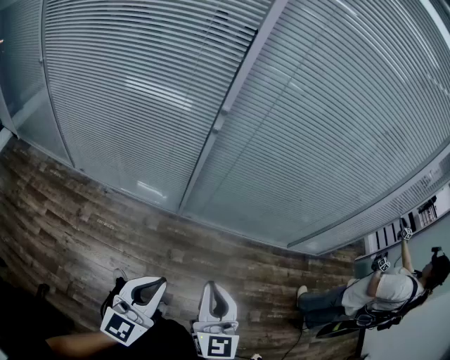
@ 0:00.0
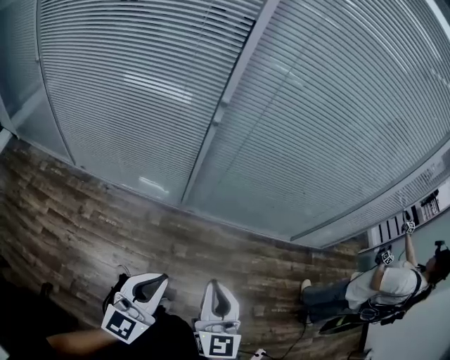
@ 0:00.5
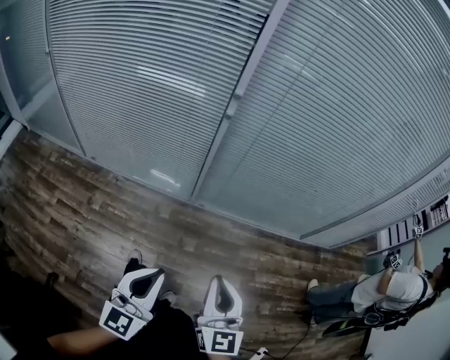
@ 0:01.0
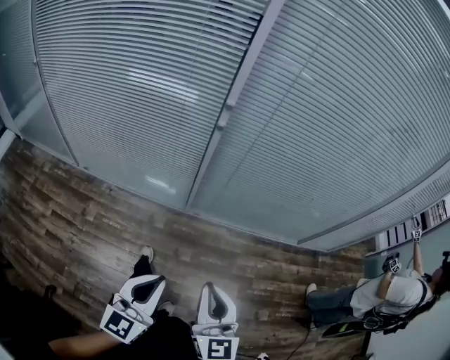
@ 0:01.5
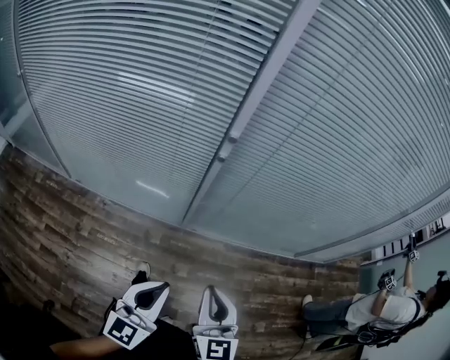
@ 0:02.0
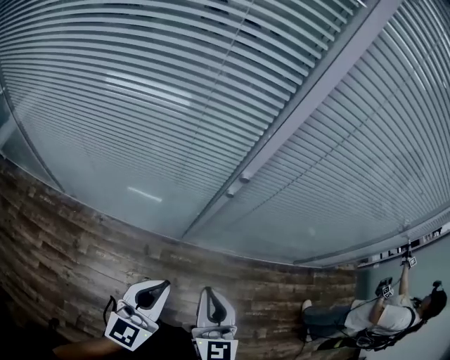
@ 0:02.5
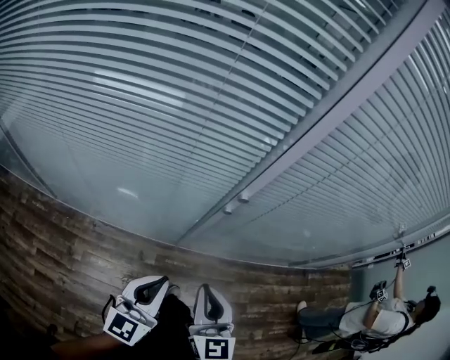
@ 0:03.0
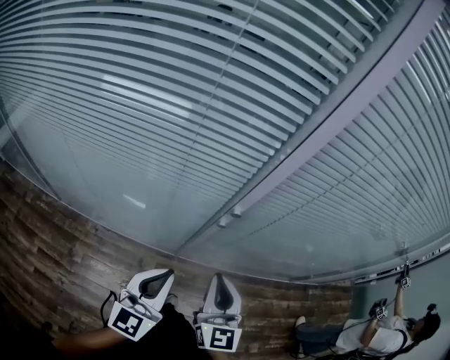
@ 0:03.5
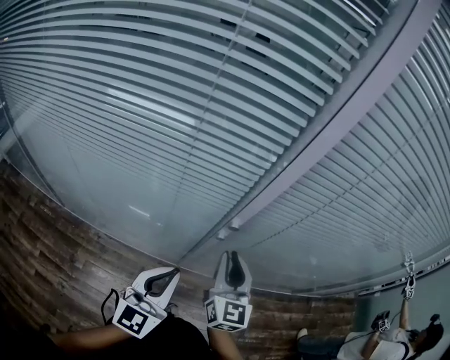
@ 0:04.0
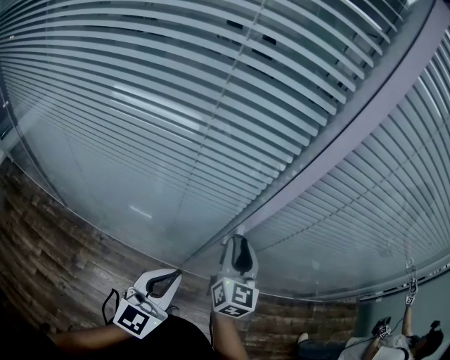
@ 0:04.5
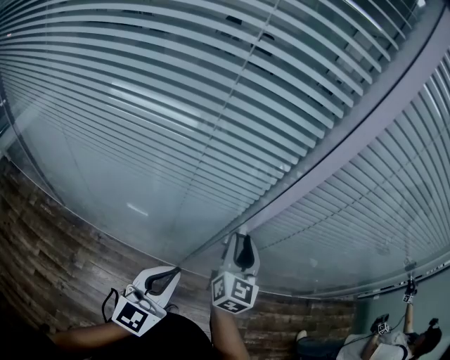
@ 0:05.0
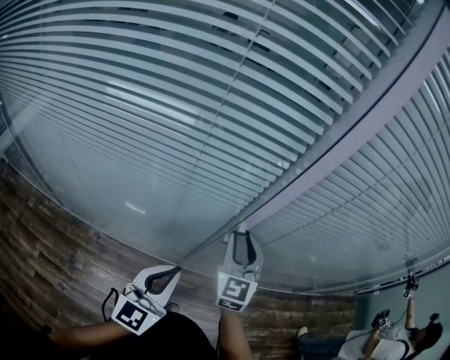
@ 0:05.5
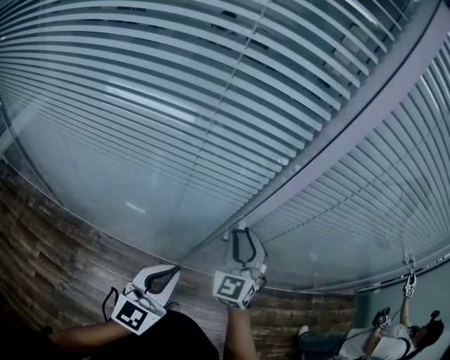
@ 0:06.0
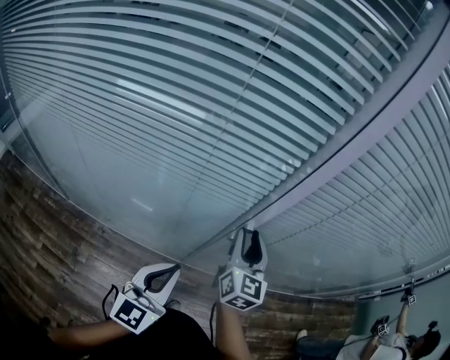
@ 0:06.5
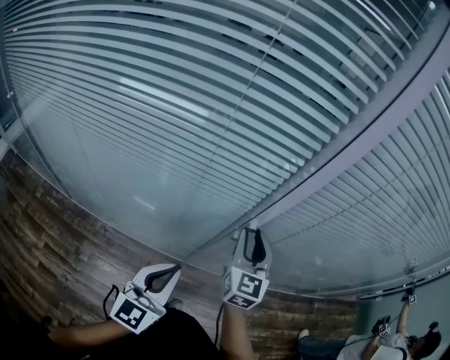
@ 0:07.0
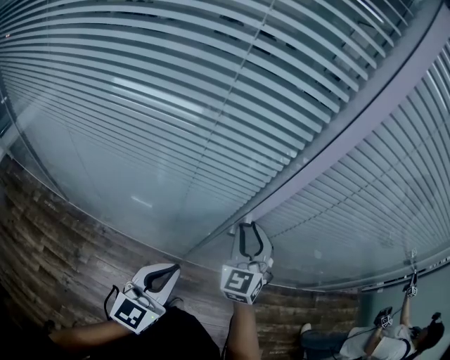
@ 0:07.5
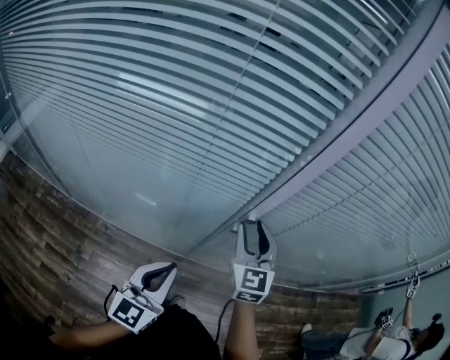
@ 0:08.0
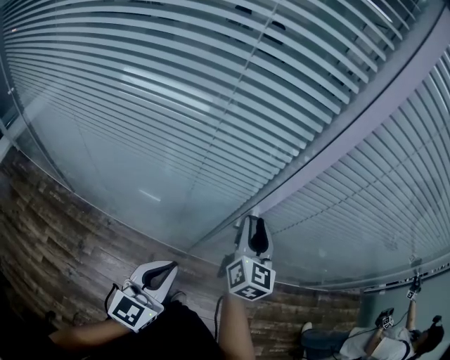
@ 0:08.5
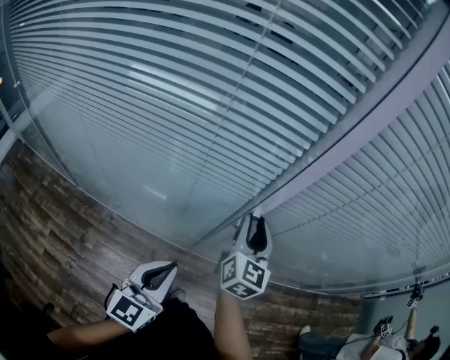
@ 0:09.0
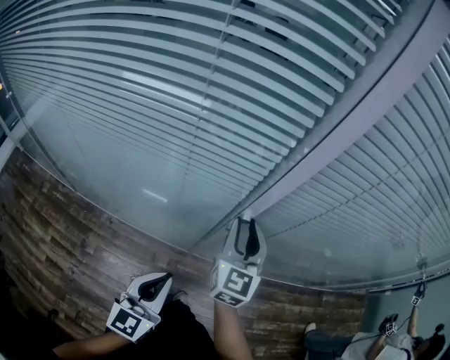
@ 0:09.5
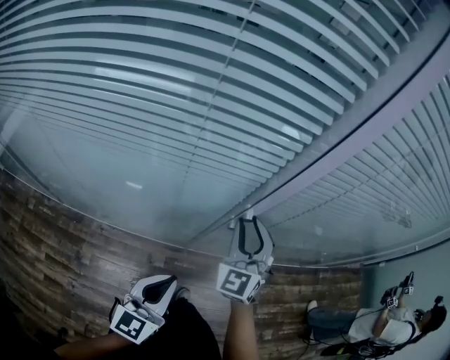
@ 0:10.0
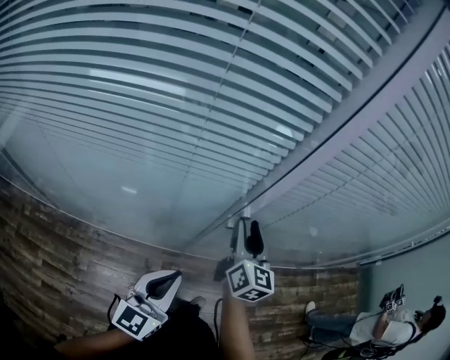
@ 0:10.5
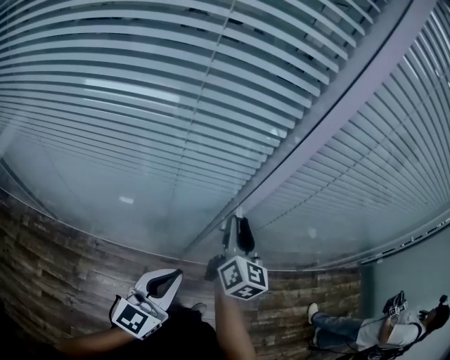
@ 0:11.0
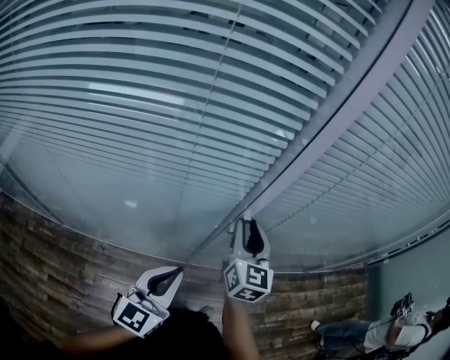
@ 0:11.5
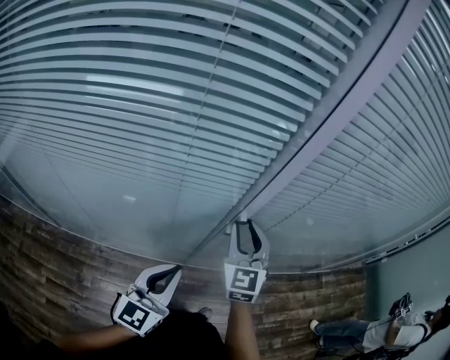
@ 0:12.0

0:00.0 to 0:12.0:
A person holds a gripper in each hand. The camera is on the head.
0:00.0 to 0:02.0: Both grippers travel together forward, about 15 cm.
0:02.0 to 0:04.0: Both grippers travel together forward, about 30 cm.
0:04.0 to 0:06.0: The right gripper heads forward, covering some 5 cm, and changes its angle by approximately 40 degrees.
0:06.0 to 0:08.0: The right gripper swivels some 20 degrees.
0:08.0 to 0:10.0: The right gripper turns by roughly 20 degrees.

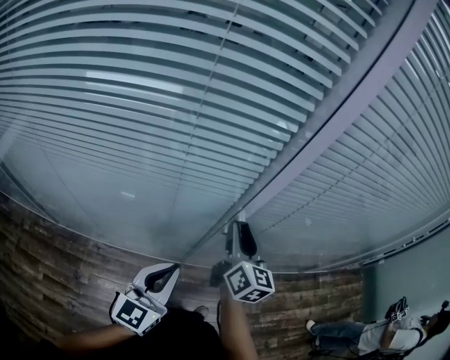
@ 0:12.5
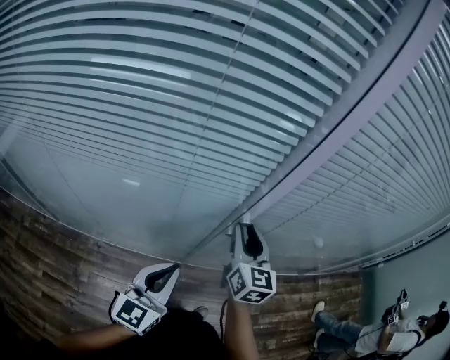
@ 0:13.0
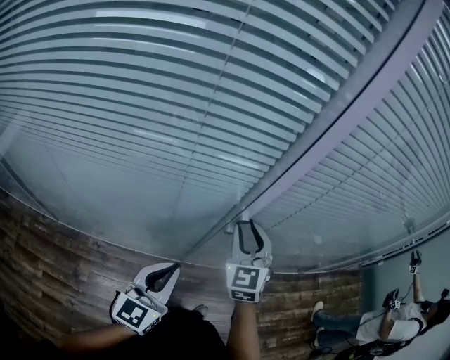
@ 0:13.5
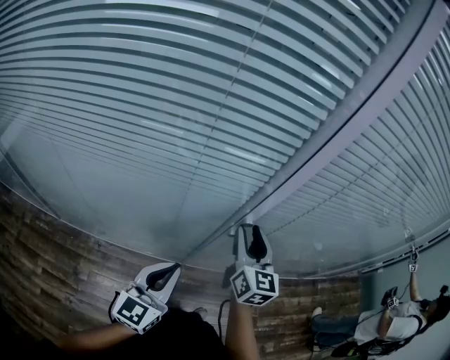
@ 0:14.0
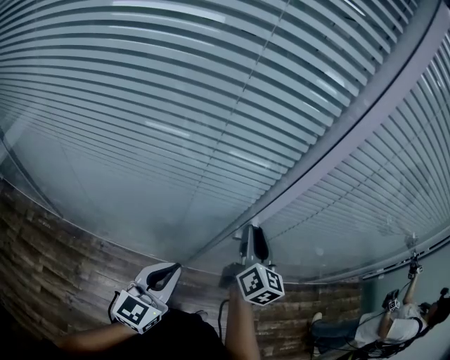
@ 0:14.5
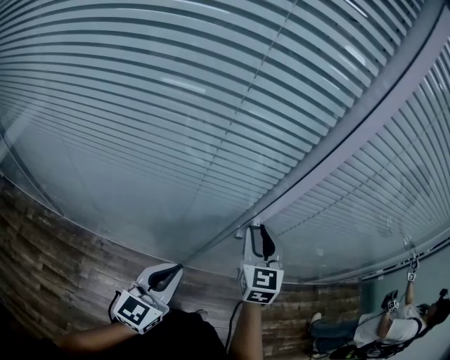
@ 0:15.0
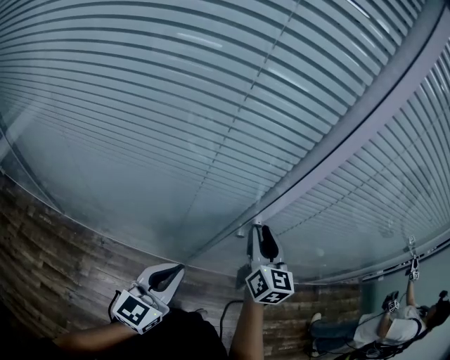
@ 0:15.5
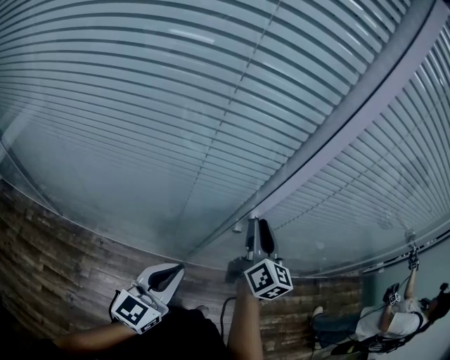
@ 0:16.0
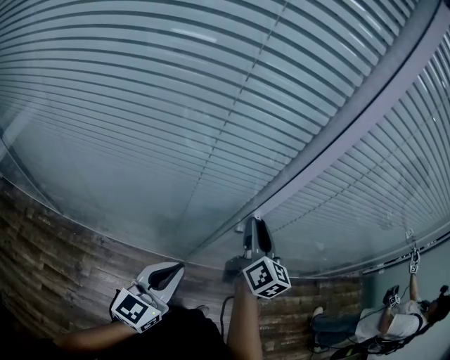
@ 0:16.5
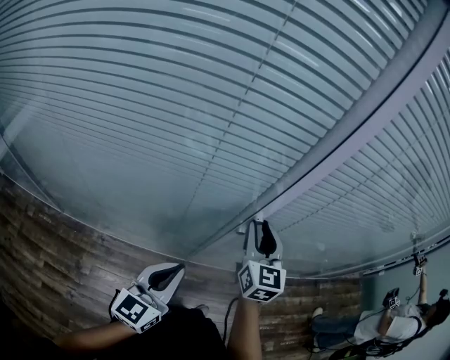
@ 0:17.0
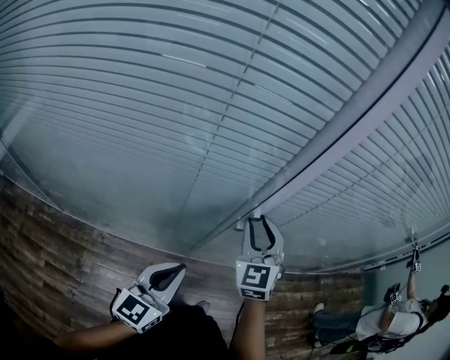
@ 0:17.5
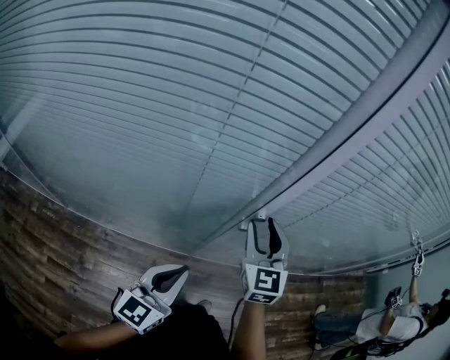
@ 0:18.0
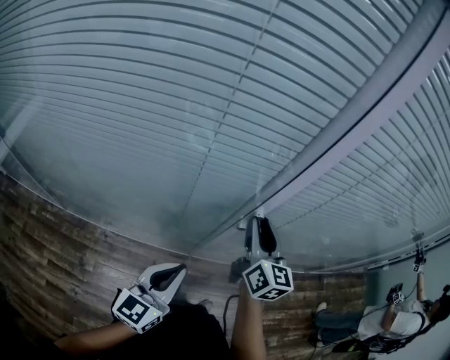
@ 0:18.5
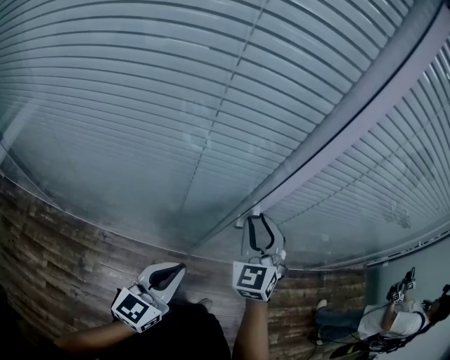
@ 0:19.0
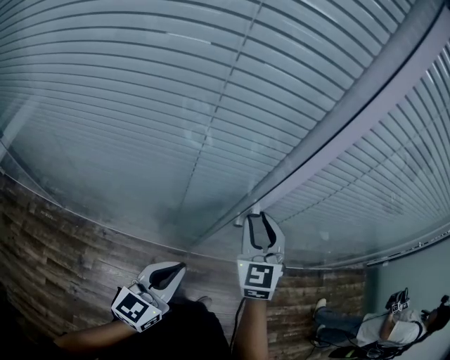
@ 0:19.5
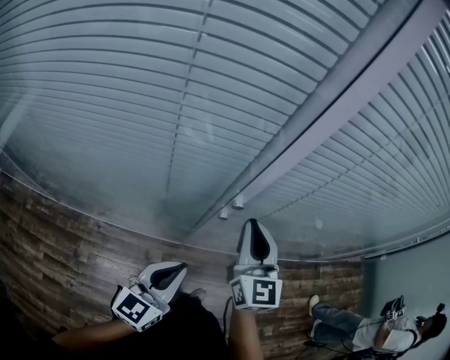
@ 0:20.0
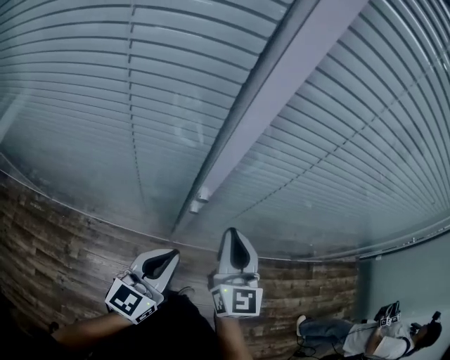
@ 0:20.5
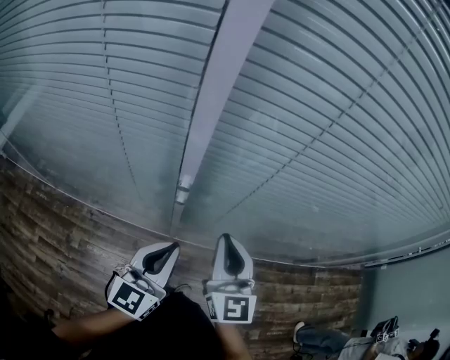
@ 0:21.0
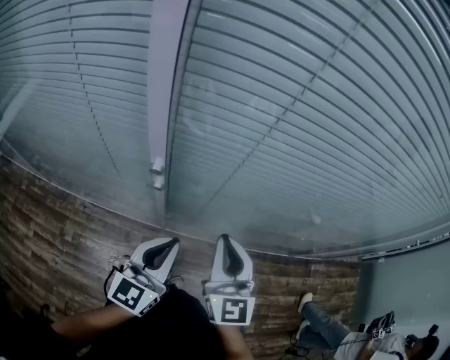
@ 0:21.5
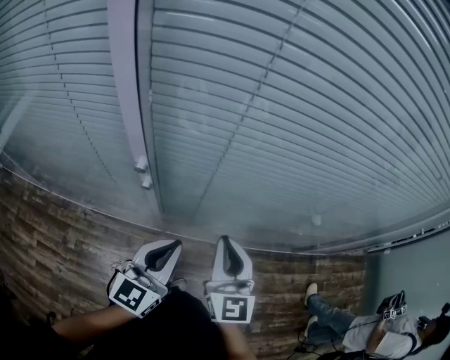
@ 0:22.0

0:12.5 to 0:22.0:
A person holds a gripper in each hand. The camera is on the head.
0:16.5 to 0:18.0: The right gripper rolls counterclockwise, seen from behind, by some 40 degrees.
0:18.0 to 0:20.0: The left gripper moves to the right, approximately 5 cm. Meanwhile the right gripper closes.
0:20.0 to 0:22.0: Both grippers move to the right, about 20 cm.

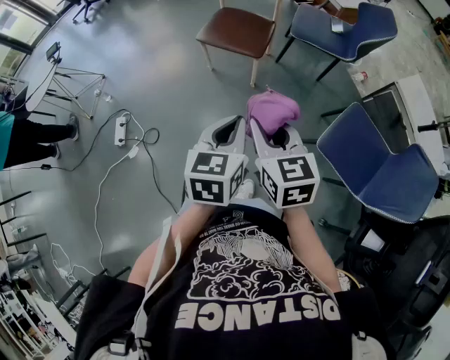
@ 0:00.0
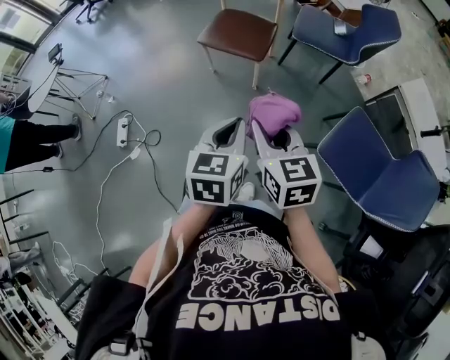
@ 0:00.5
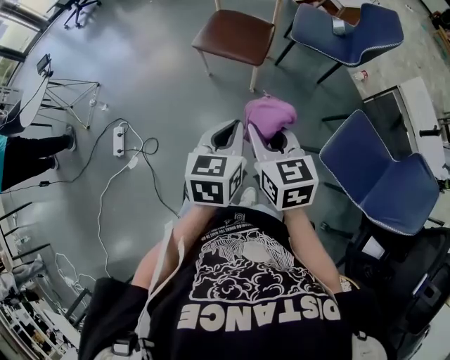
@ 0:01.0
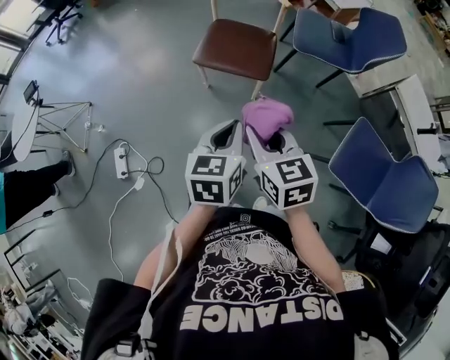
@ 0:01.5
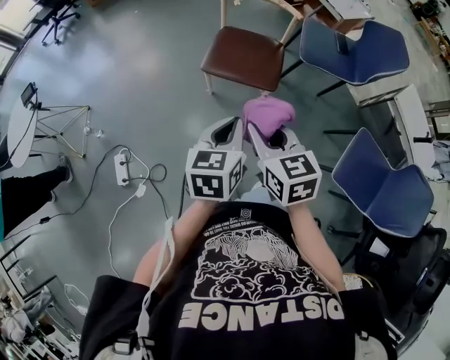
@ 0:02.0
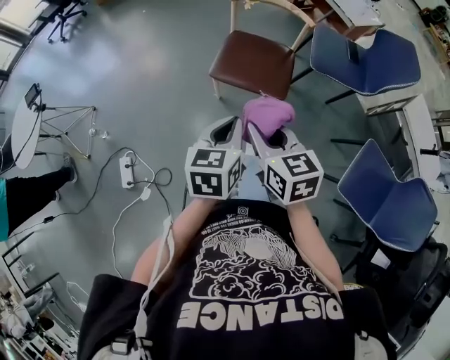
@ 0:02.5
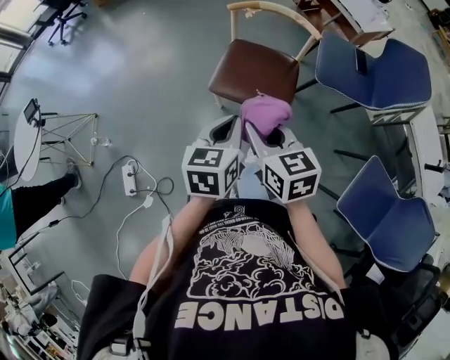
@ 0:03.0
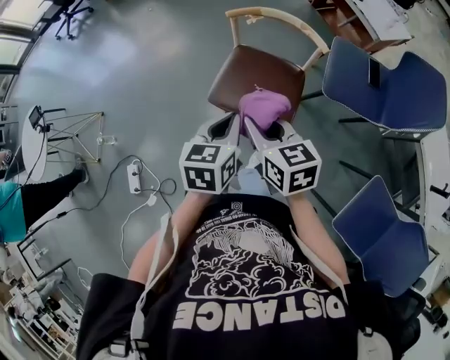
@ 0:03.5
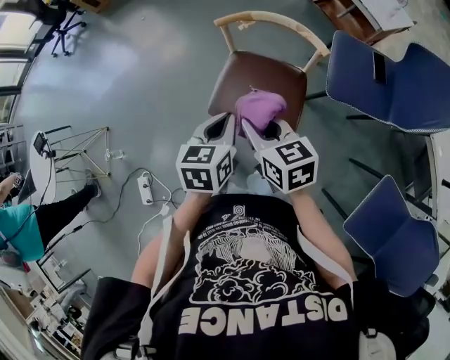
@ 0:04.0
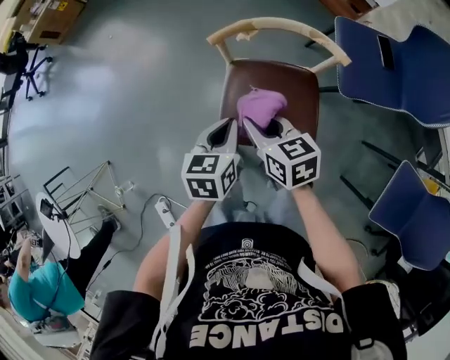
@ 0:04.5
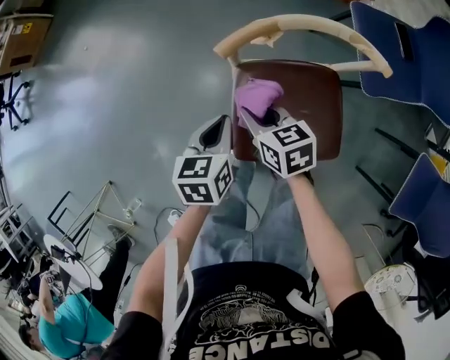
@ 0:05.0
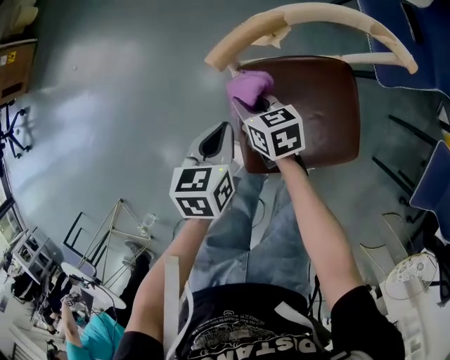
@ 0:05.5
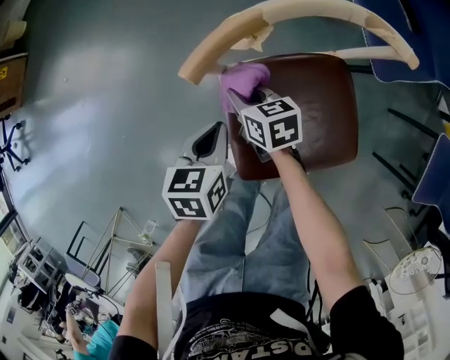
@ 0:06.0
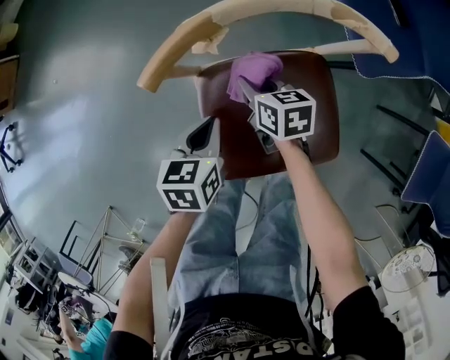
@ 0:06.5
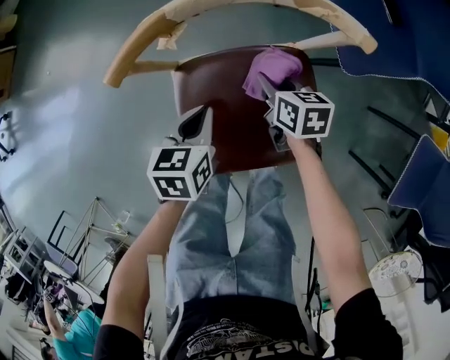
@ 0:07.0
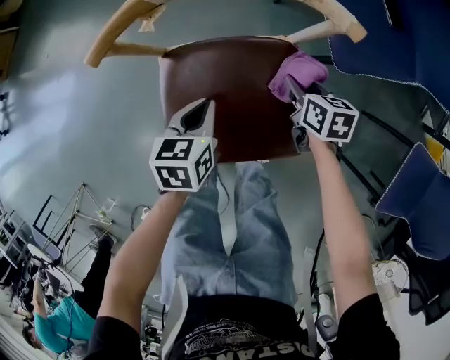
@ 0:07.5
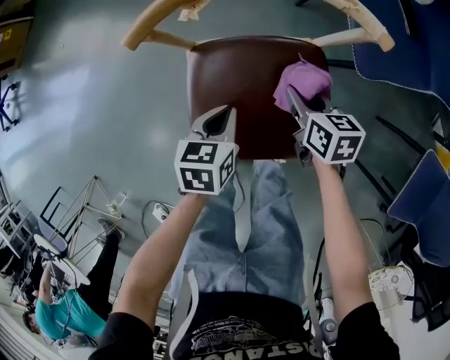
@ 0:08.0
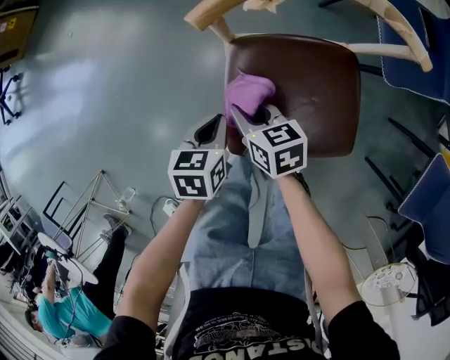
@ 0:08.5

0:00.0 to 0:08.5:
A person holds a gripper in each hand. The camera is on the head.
0:00.0 to 0:02.0: Both grippers move forward and to the left, roughly 30 cm.
0:02.0 to 0:04.0: The grippers both shift forward by approximately 30 cm.
0:04.0 to 0:06.5: The grippers both shift downward by roughly 30 cm. The left gripper changes its angle by some 30 degrees. The right gripper changes its angle by about 40 degrees.
0:06.5 to 0:08.5: The left gripper heads backward and to the left, covering about 10 cm. Meanwhile the right gripper travels backward by about 15 cm, and moves roughly 20 cm to the right and comes back.
